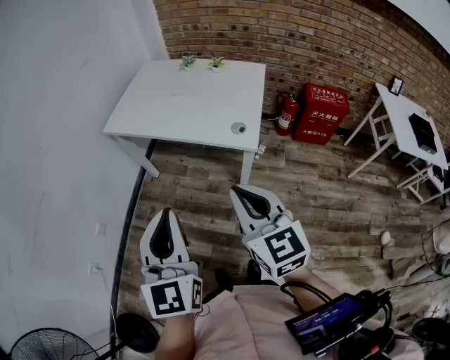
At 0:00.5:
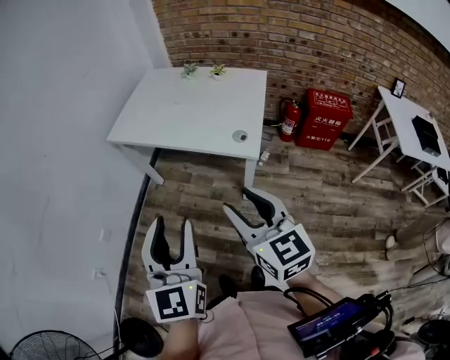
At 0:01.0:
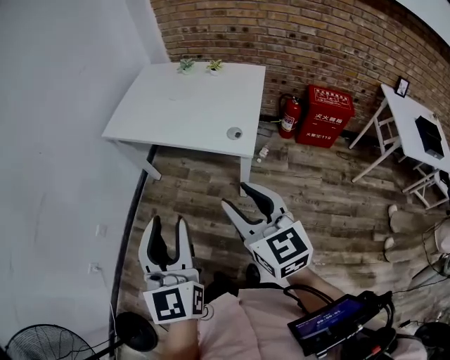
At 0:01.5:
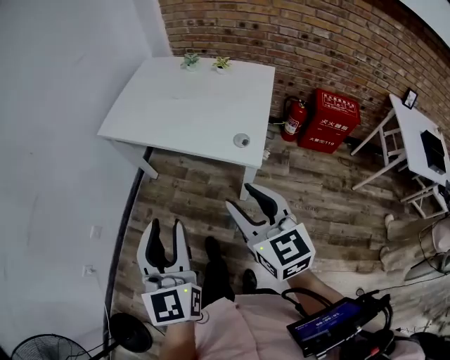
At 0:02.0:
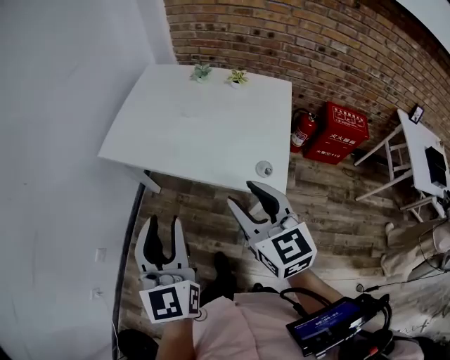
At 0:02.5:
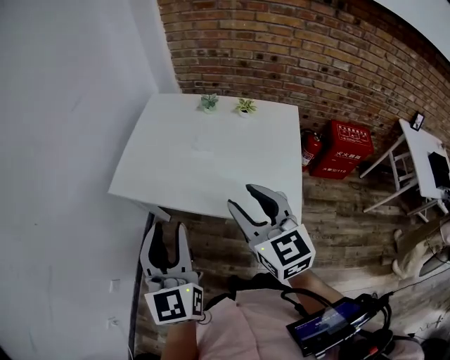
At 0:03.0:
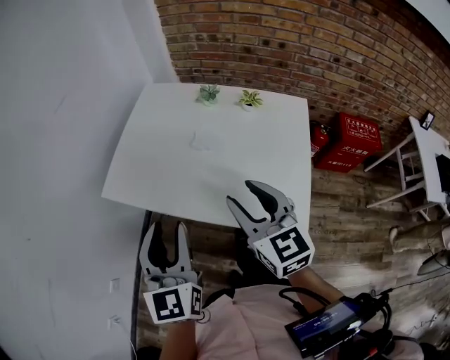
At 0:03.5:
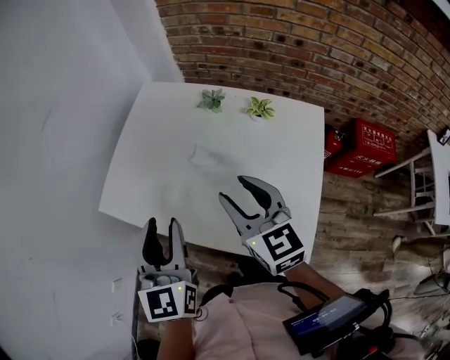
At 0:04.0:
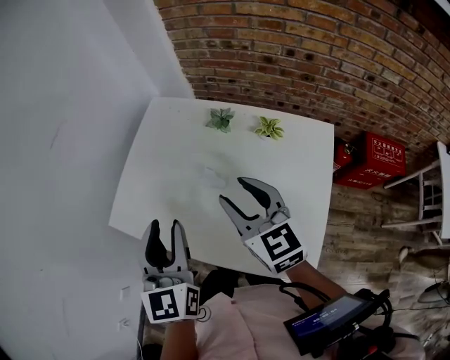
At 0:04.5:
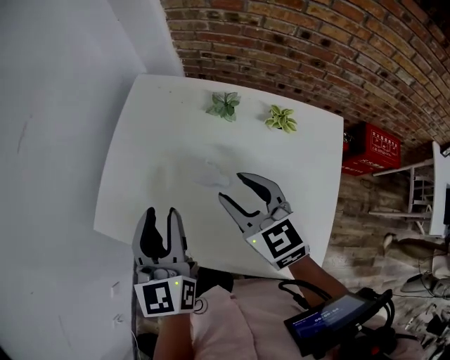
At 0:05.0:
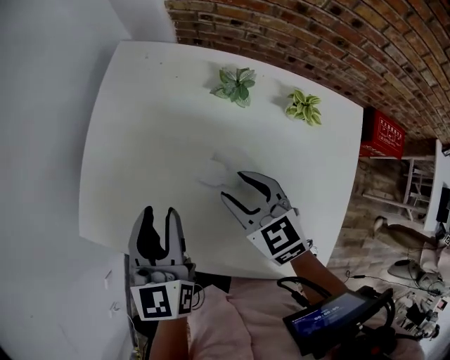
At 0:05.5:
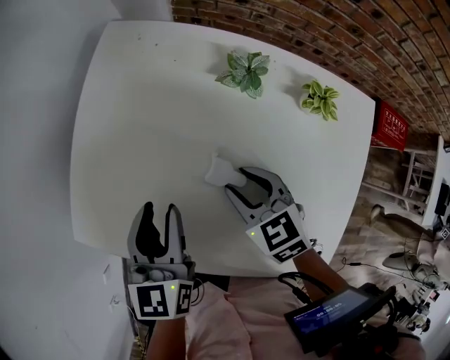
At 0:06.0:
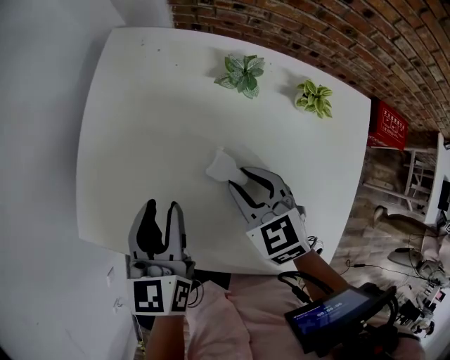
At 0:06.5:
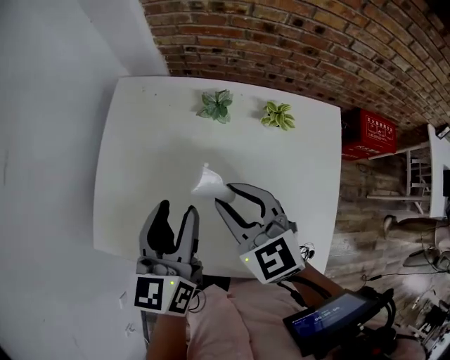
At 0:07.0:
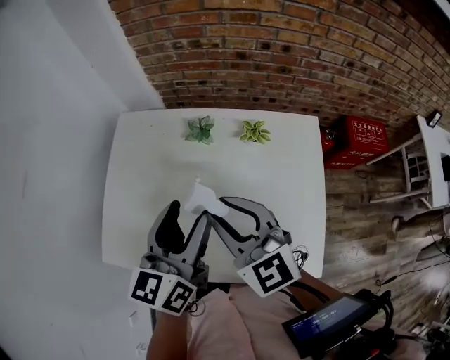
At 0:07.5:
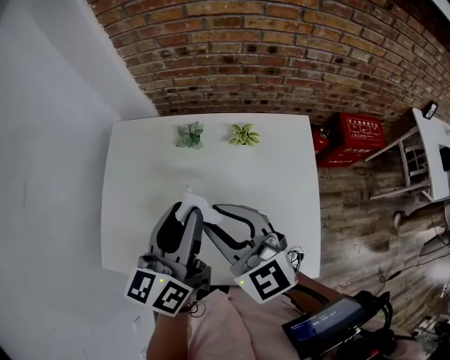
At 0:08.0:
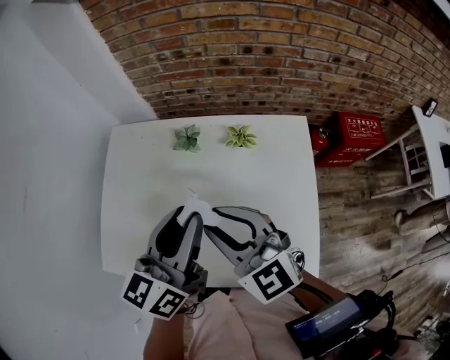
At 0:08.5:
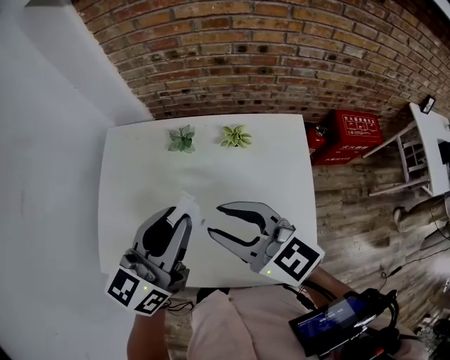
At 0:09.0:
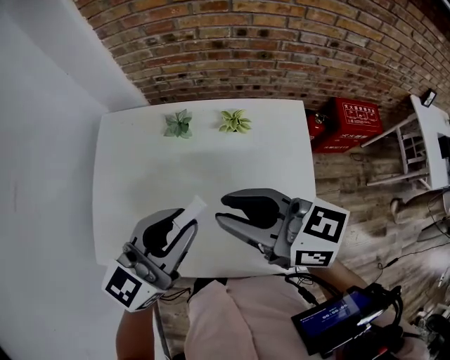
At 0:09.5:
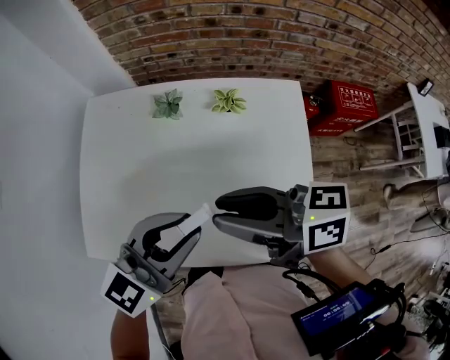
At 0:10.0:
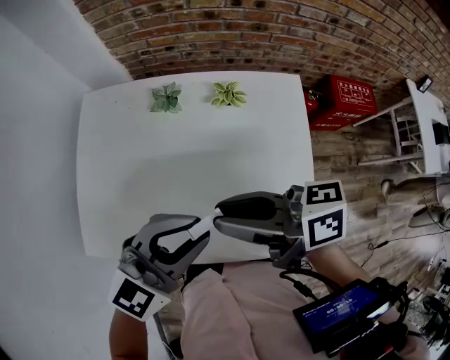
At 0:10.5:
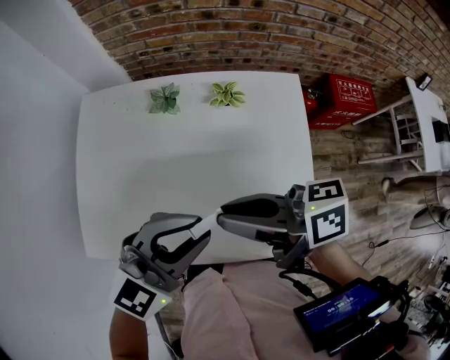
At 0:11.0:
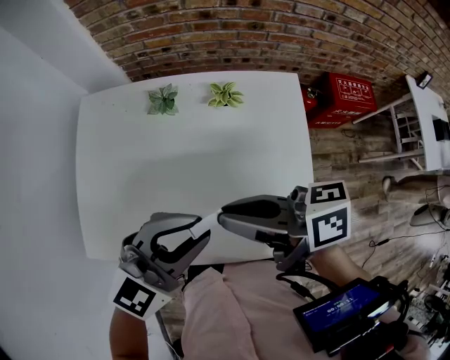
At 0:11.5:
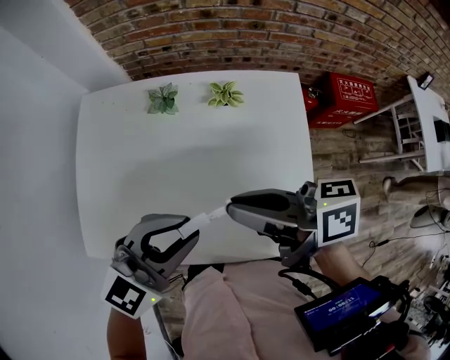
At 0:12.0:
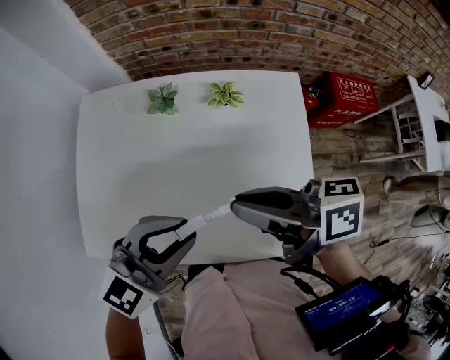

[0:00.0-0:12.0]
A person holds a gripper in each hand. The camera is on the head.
0:00.0 to 0:02.0: Both grippers travel together forward, about 20 cm. The right gripper opens.
0:02.0 to 0:04.0: The grippers both shift forward by roughly 30 cm.
0:04.0 to 0:06.0: The grippers both shift downward and forward by approximately 20 cm. The left gripper changes its angle by approximately 30 degrees, while the right gripper changes its angle by some 30 degrees.
0:06.0 to 0:08.0: The left gripper heads upward and to the right, covering approximately 25 cm, and rotates roughly 40 degrees. The right gripper travels upward by some 20 cm, and tilts its fingers approximately 30 degrees upward.
0:08.0 to 0:10.0: The left gripper shifts by roughly 10 cm, and turns by approximately 50 degrees. The right gripper rolls clockwise, seen from behind, by roughly 70 degrees.
0:10.0 to 0:12.0: The grippers stay close to where they were, moving slightly.

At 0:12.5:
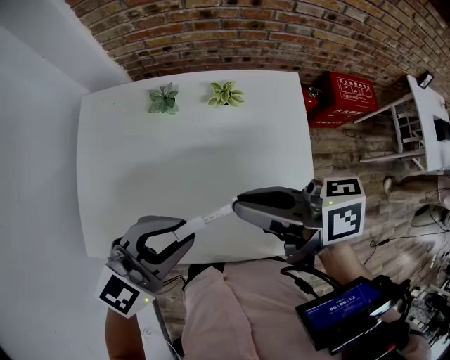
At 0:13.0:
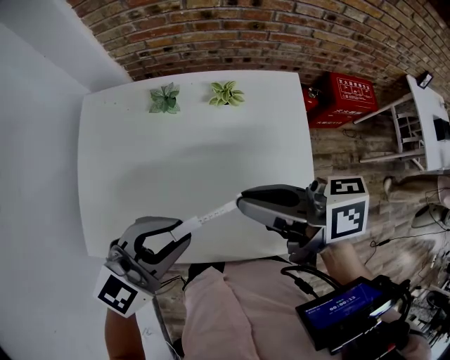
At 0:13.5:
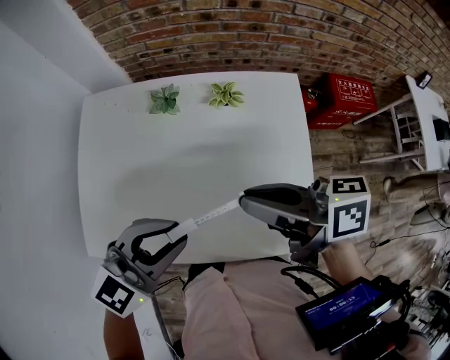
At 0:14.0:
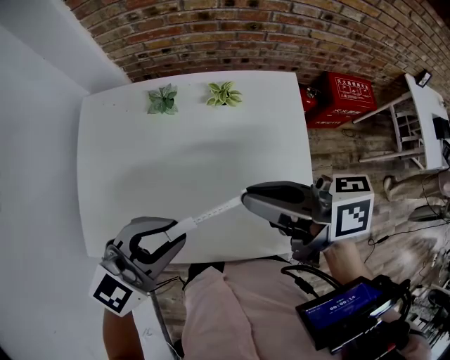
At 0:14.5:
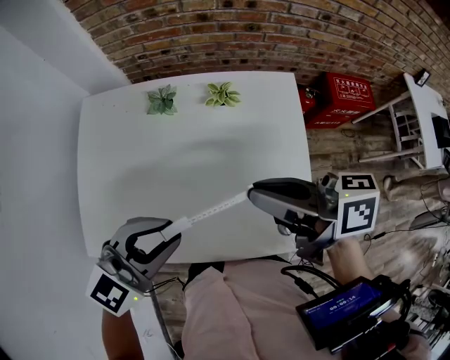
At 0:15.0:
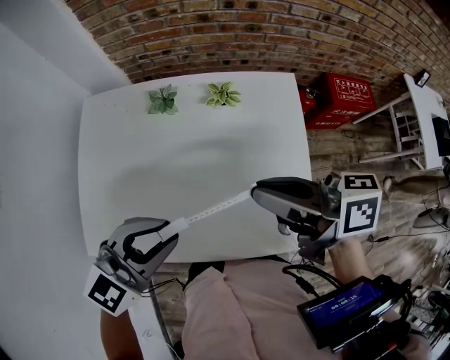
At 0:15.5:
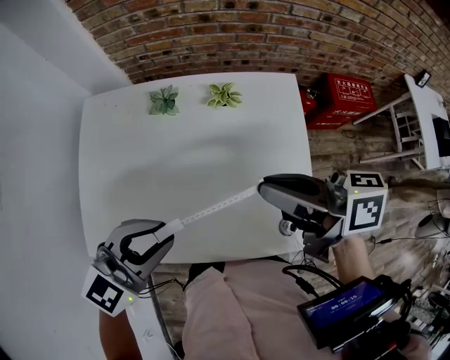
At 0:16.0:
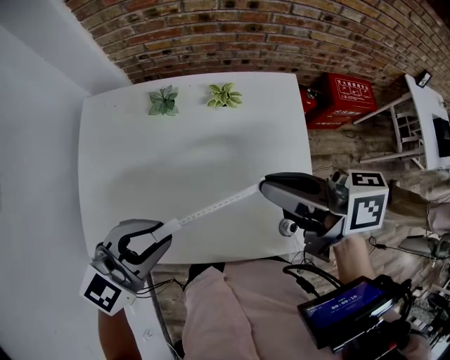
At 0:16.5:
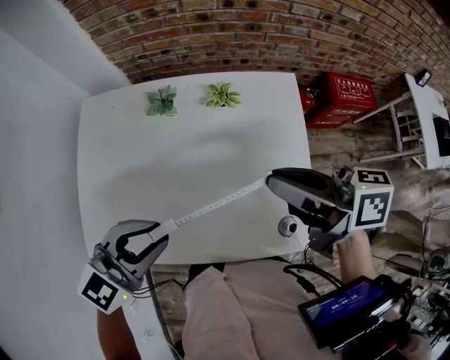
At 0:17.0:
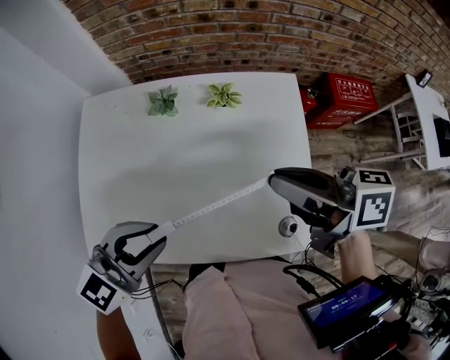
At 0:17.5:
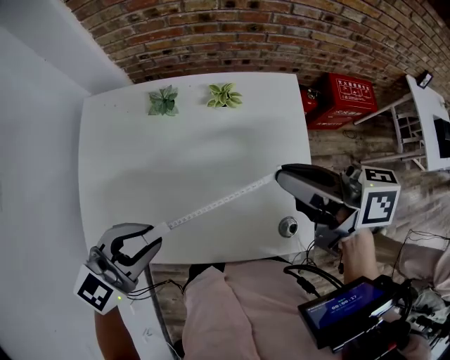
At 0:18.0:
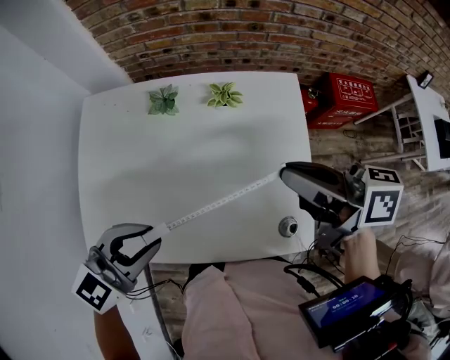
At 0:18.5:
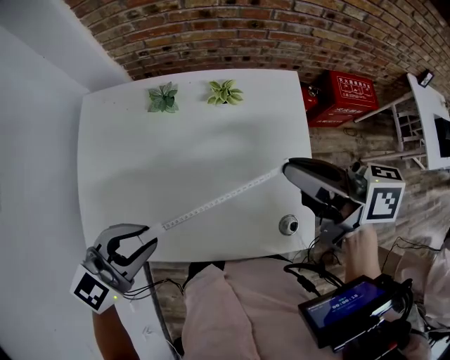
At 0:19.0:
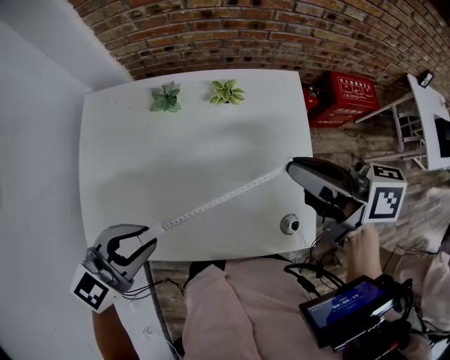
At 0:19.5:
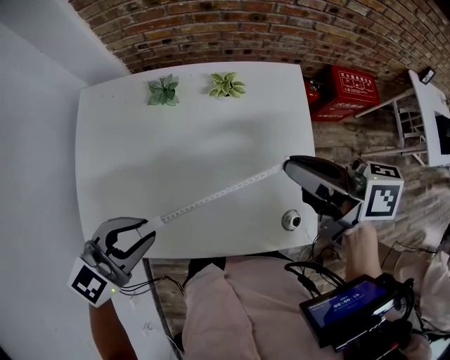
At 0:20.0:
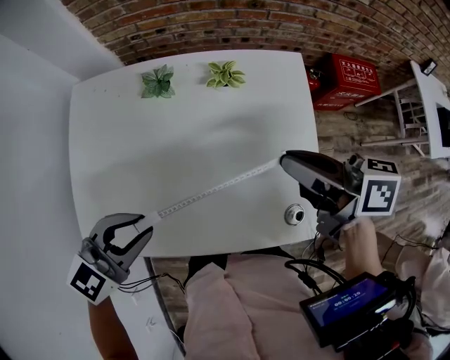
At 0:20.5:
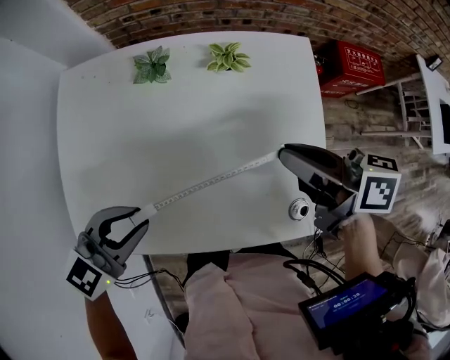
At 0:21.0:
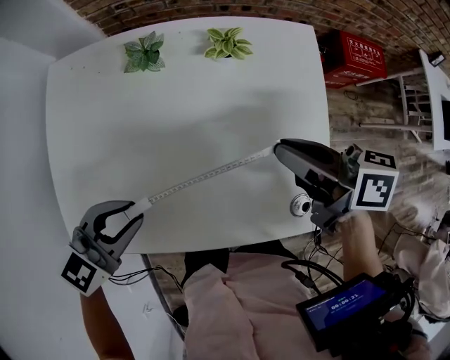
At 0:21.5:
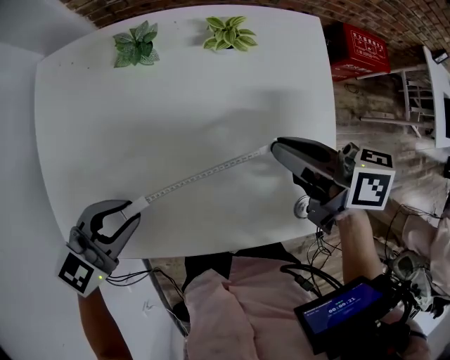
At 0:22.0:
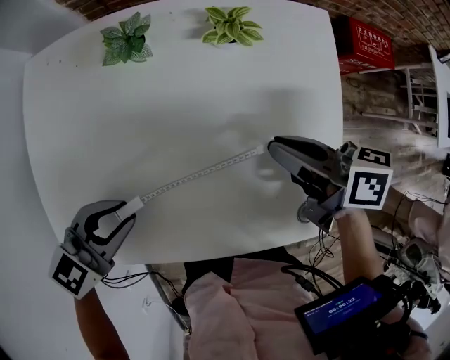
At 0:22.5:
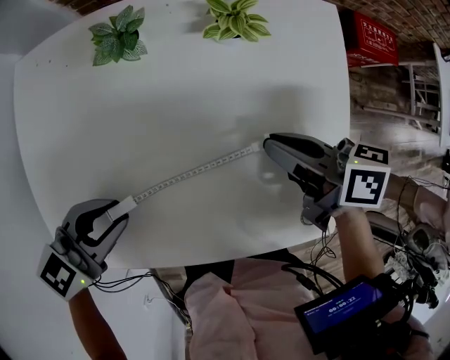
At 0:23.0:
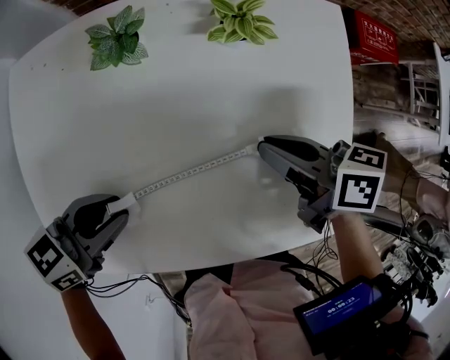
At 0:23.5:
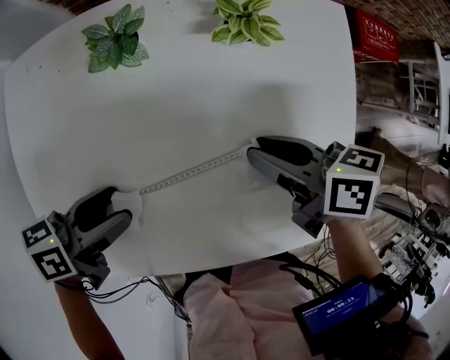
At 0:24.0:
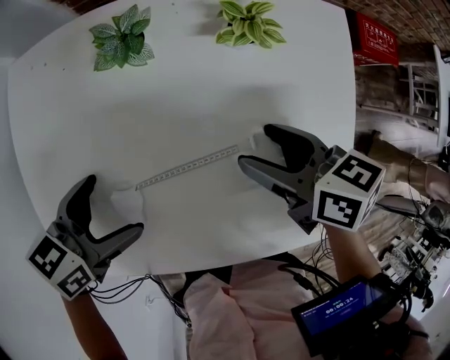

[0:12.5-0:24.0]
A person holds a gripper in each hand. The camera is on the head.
0:12.5 to 0:14.5: There are only small adjustments of the grippers.
0:14.5 to 0:16.5: The grippers stay close to where they were, moving slightly.
0:16.5 to 0:20.0: The grippers move only a little.
0:20.0 to 0:22.0: The two grippers go about 15 cm downward.
0:22.0 to 0:24.0: The right gripper ends up roughly 5 cm from where it was, and opens, while the left gripper changes place by some 5 cm, rotates roughly 30 degrees, and opens its fingers.

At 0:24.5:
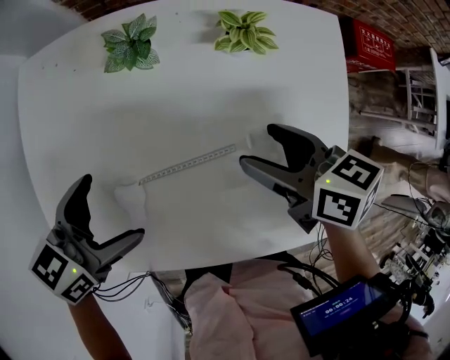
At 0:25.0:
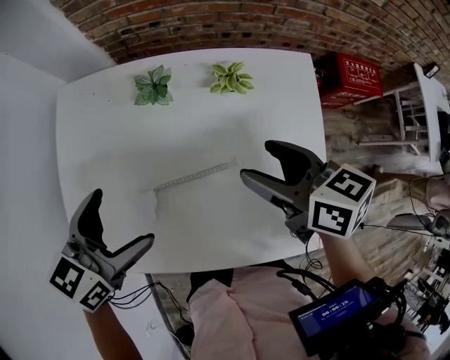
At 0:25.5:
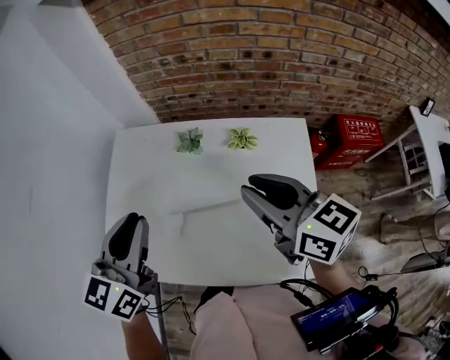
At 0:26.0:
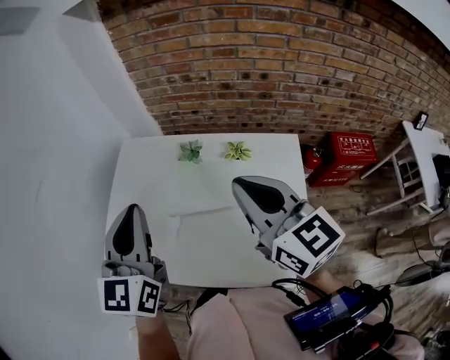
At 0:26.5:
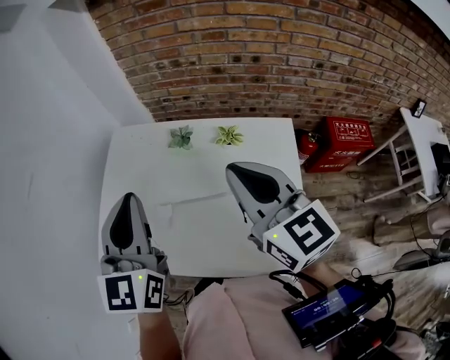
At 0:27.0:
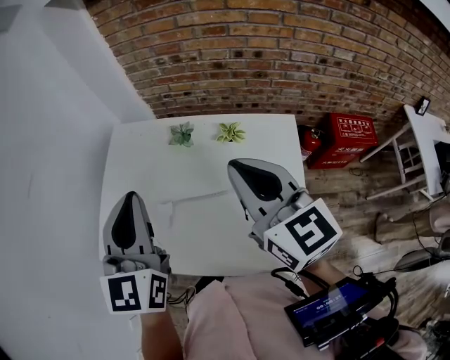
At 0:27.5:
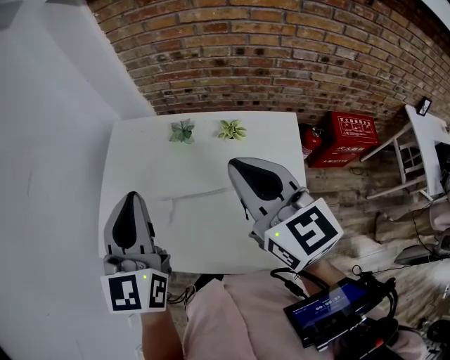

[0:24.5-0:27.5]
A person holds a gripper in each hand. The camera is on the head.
0:24.5 to 0:26.0: The grippers both shift upward by about 30 cm. The left gripper tips its fingers upward by roughly 30 degrees, and closes up, while the right gripper angles its fingers upward, by some 30 degrees, and closes up.
0:26.0 to 0:27.5: There are only small adjustments of the grippers.
